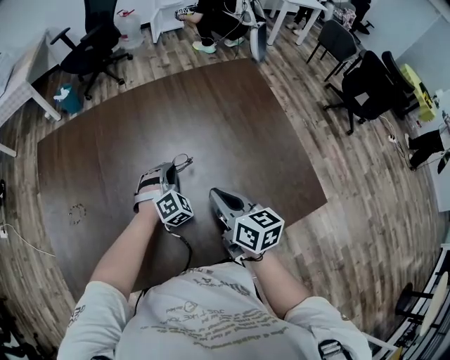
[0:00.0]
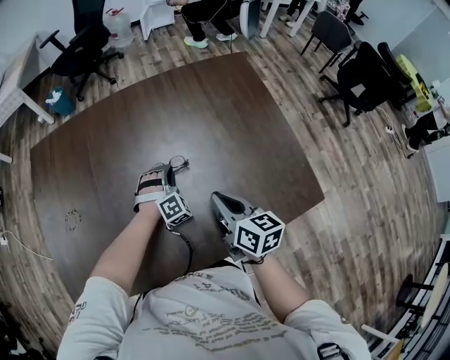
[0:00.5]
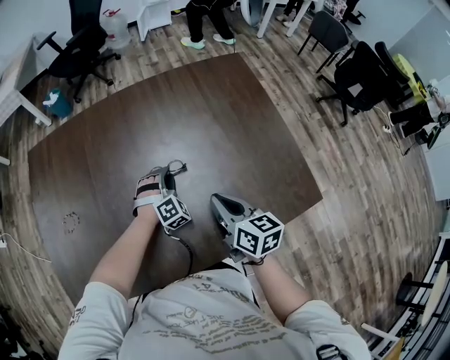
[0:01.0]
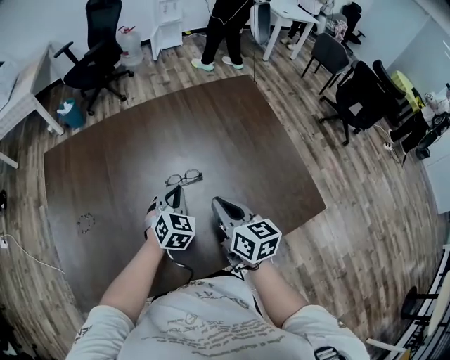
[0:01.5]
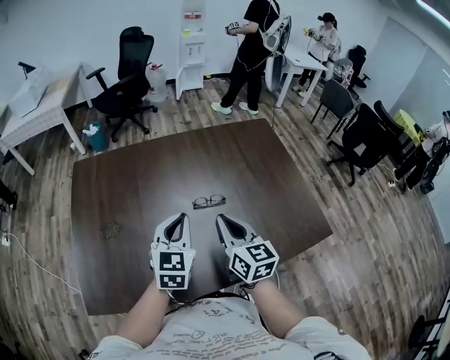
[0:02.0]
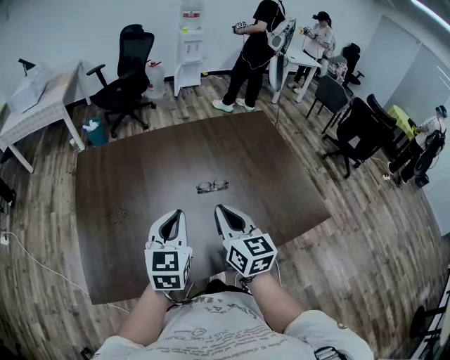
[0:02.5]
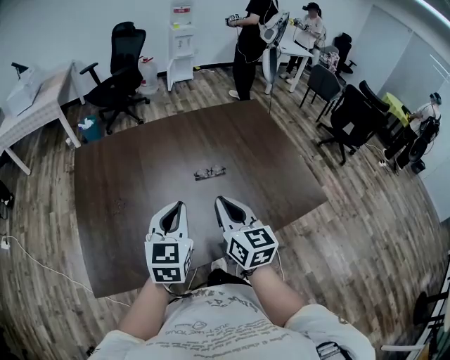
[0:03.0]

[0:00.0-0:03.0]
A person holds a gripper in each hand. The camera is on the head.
0.0 to 1.5 s: The left gripper moves upward, some 5 cm, turns by approximately 30 degrees, and opens, then closes again.
1.5 to 3.0 s: The left gripper travels backward, upward and to the left by approximately 30 cm, and changes its angle by some 30 degrees. Meanwhile the right gripper travels to the left, backward and upward by approximately 20 cm.

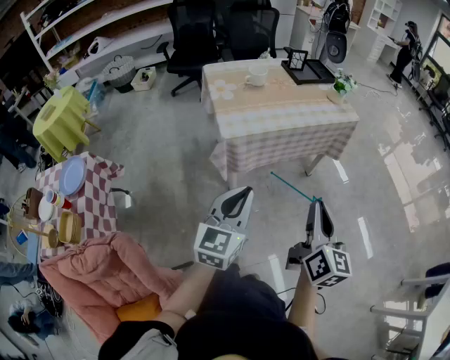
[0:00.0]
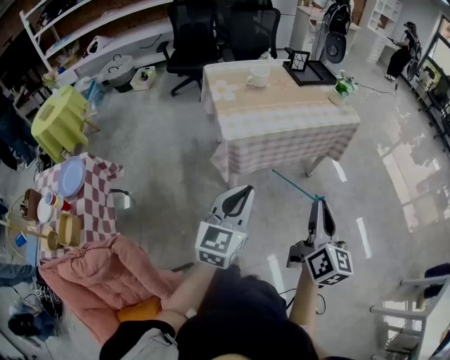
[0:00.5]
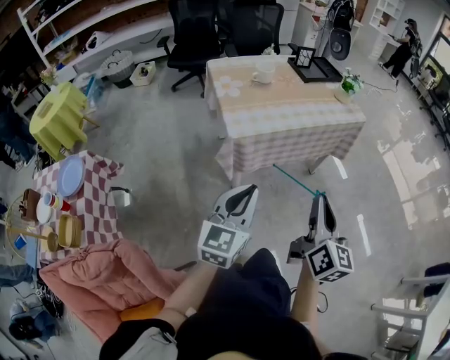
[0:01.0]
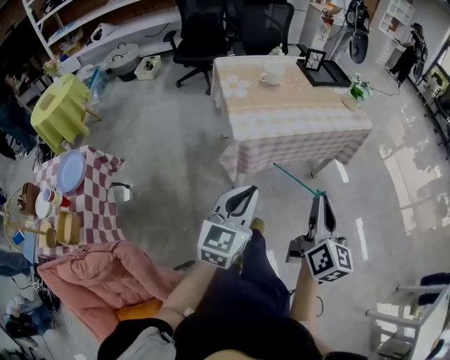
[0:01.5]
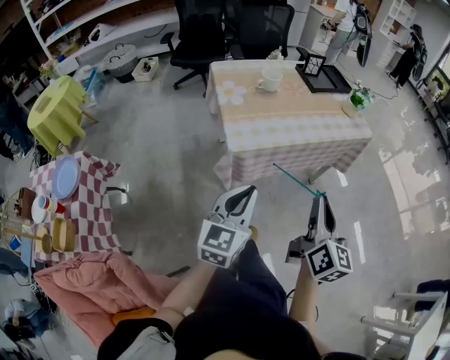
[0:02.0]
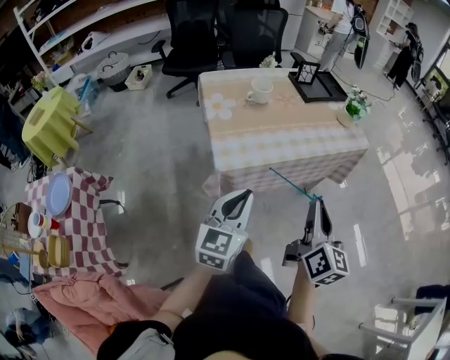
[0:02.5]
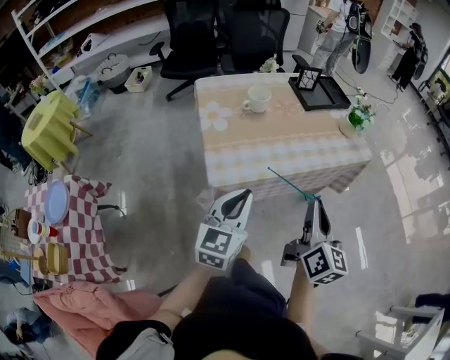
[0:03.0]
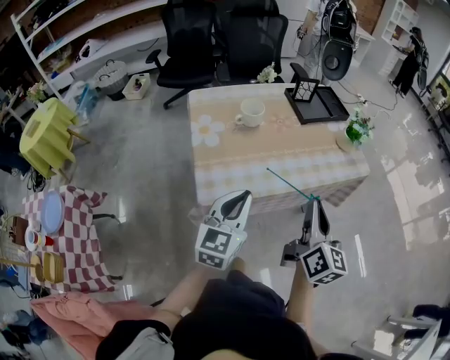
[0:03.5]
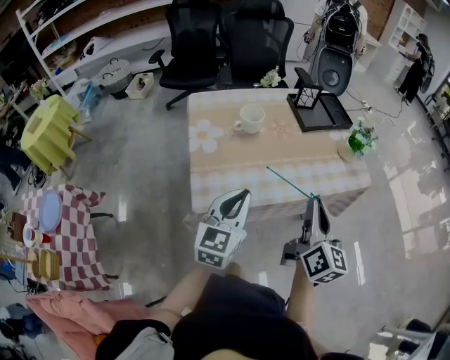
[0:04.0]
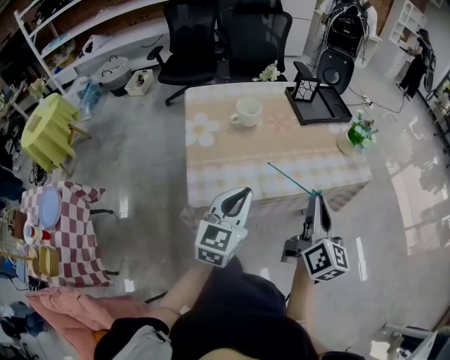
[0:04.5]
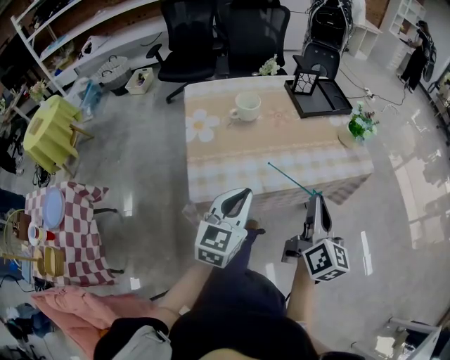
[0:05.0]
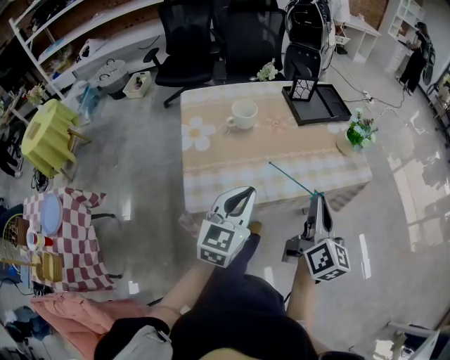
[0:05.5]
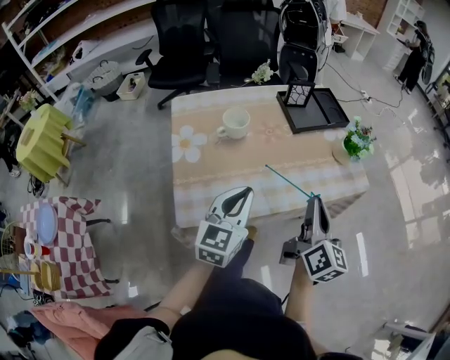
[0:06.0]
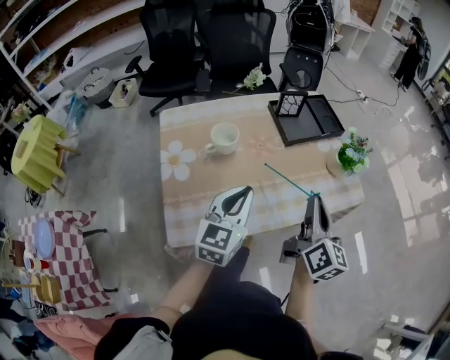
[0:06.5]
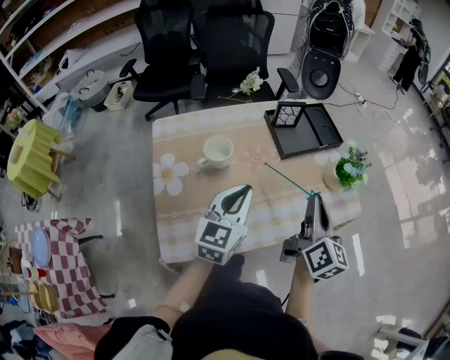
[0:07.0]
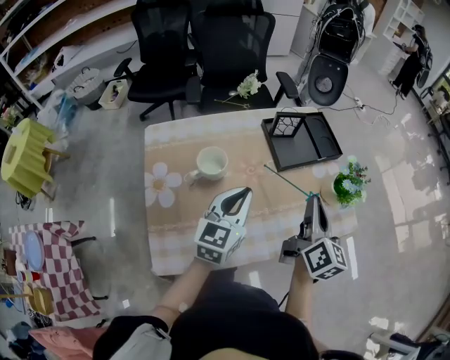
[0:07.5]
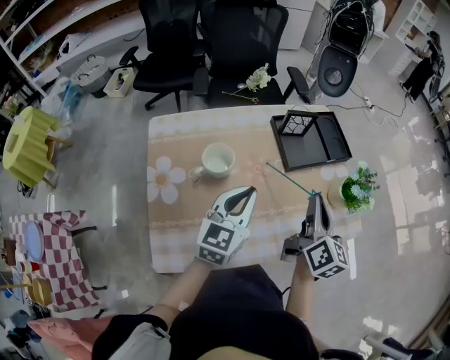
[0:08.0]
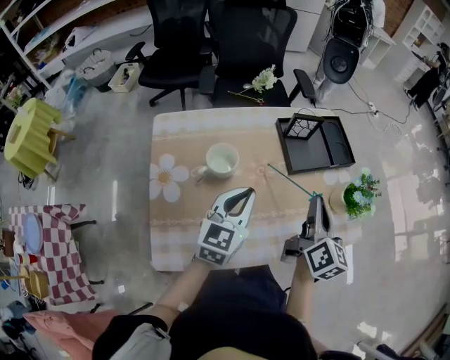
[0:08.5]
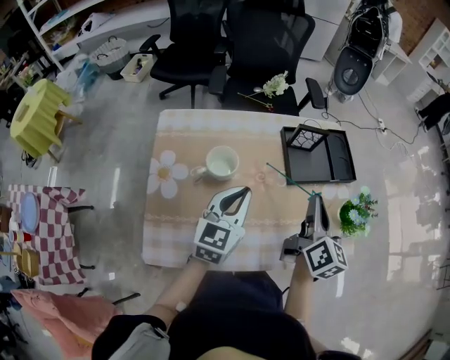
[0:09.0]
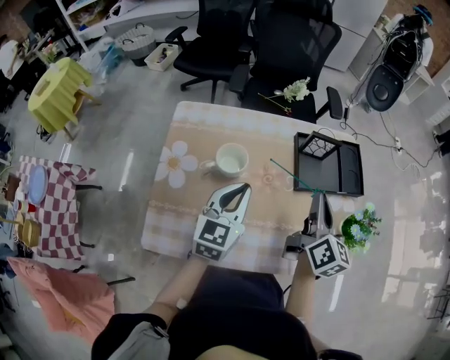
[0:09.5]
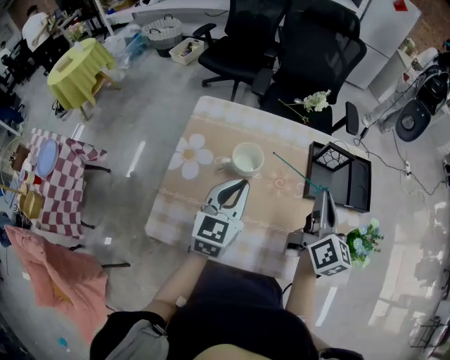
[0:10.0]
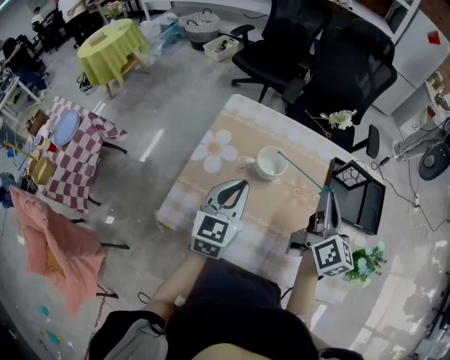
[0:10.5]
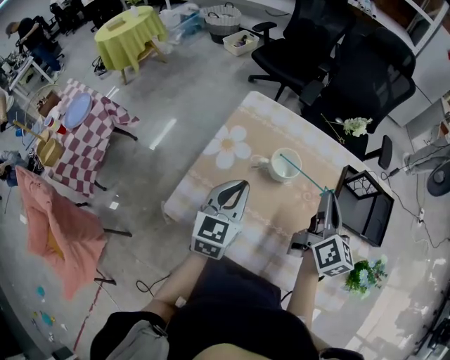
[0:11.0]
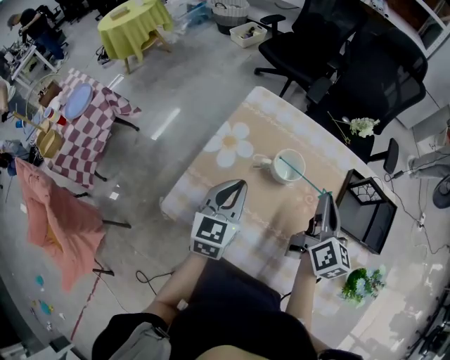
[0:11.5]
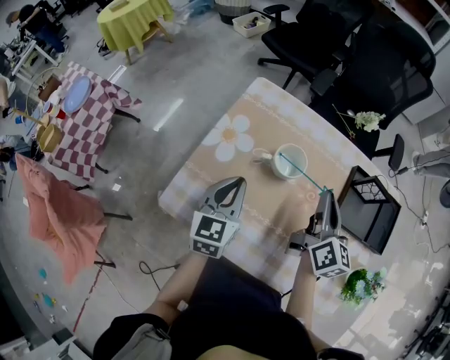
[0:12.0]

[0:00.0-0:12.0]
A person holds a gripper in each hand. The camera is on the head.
0.0 to 2.0 s: The right gripper travels forward and to the left by roughly 10 cm. The left gripper goes approximately 10 cm forward.
2.0 to 4.0 s: The two grippers go some 25 cm forward.
4.0 to 6.0 s: The grippers both shift forward by approximately 5 cm.
6.0 to 8.0 s: The two grippers go approximately 20 cm forward.
8.0 to 10.0 s: The right gripper changes place by about 10 cm, and rotates roughly 20 degrees. Meanwhile the left gripper ends up approximately 5 cm from where it was, and turns by about 30 degrees.
10.0 to 12.0 s: The left gripper shifts some 10 cm to the left and downward, and changes its angle by approximately 20 degrees; the right gripper moves to the left, forward and downward, approximately 10 cm.

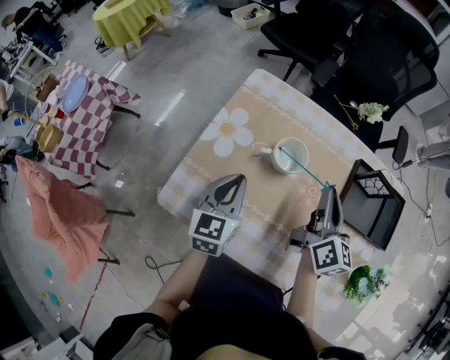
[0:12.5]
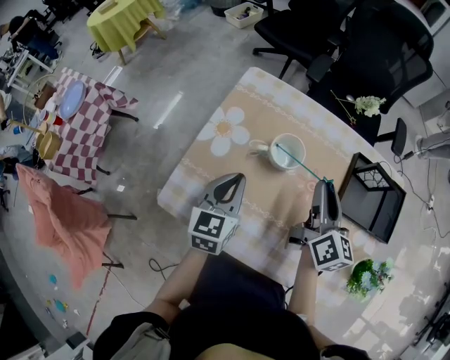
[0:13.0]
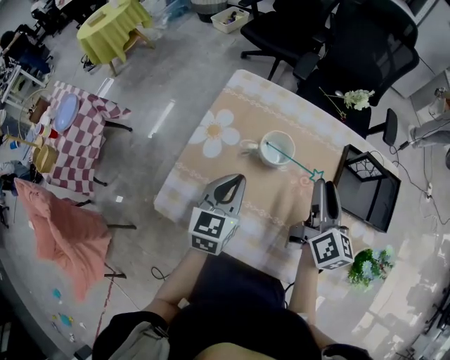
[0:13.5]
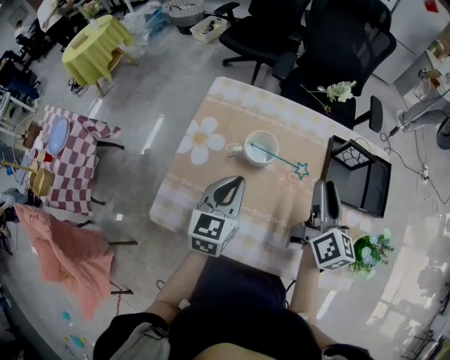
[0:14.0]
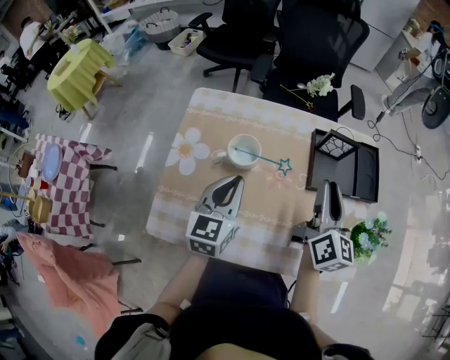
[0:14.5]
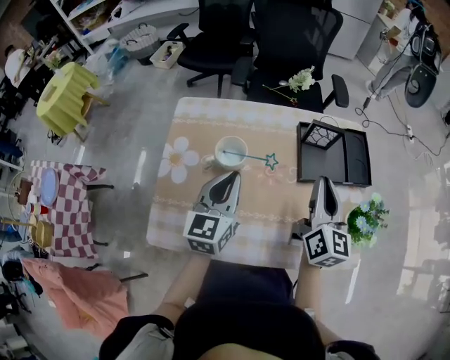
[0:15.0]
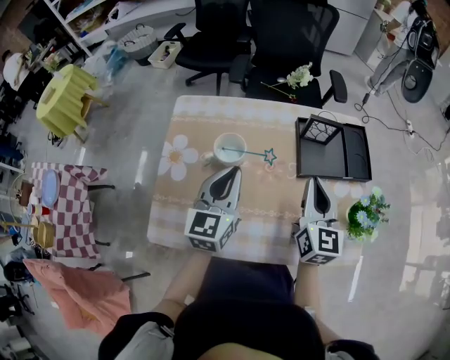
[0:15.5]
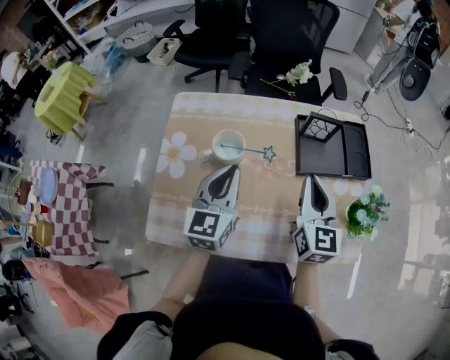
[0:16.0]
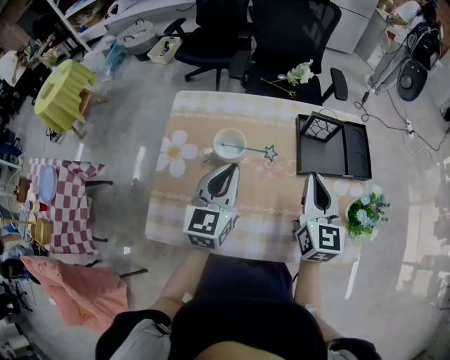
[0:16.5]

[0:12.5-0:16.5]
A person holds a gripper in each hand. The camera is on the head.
12.5 to 14.5 s: The right gripper moves to the right and backward, some 10 cm, and opens its fingers; the left gripper shifts roughly 10 cm to the right.
14.5 to 16.5 s: The right gripper turns by some 30 degrees, and closes up.

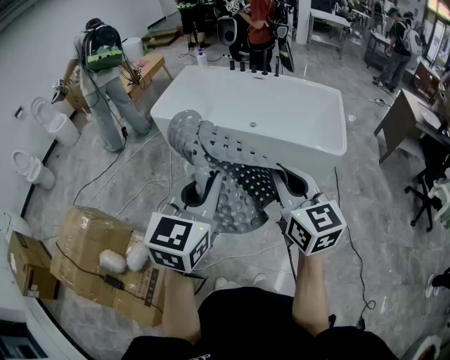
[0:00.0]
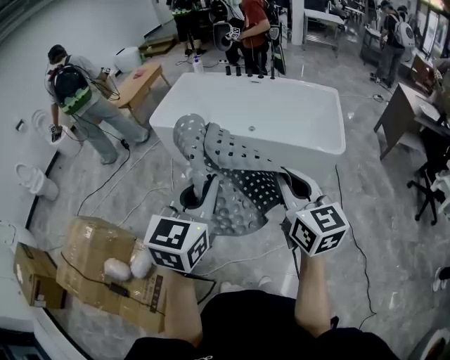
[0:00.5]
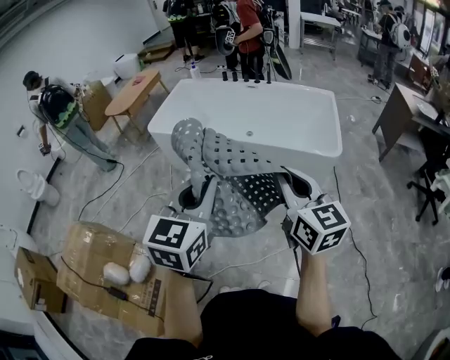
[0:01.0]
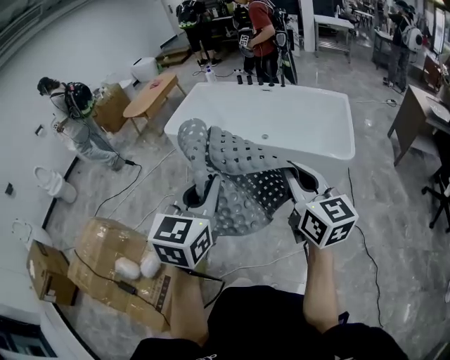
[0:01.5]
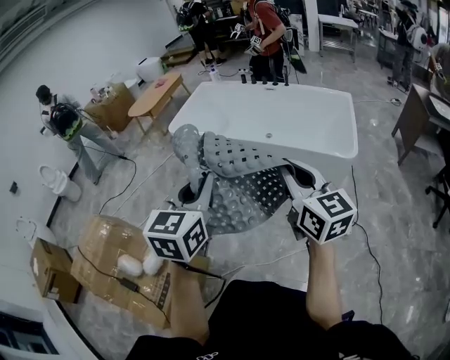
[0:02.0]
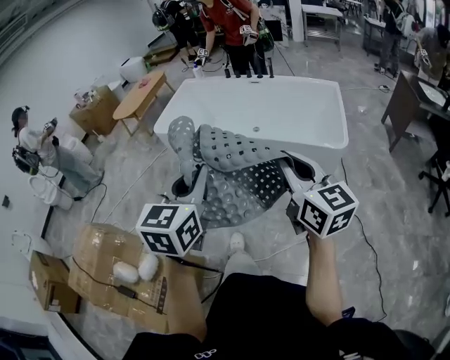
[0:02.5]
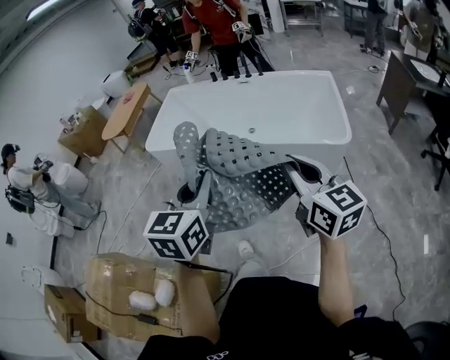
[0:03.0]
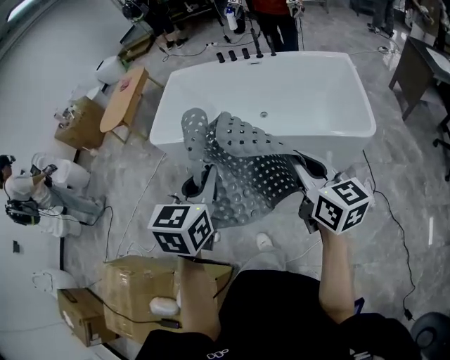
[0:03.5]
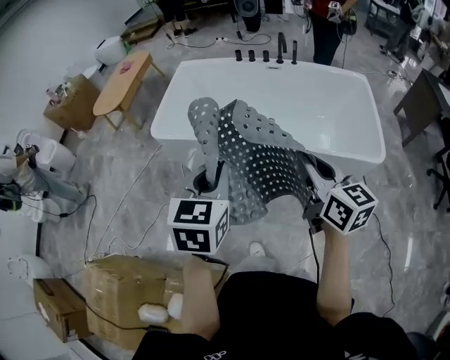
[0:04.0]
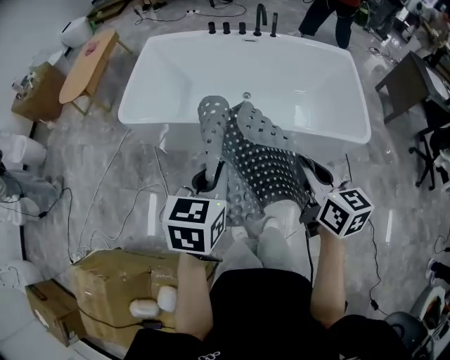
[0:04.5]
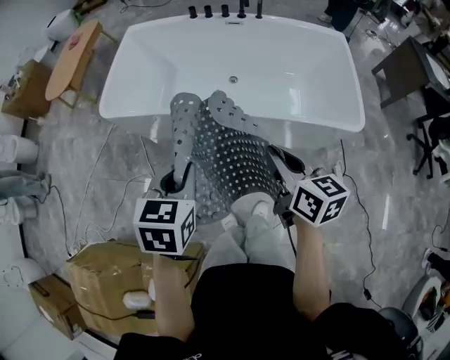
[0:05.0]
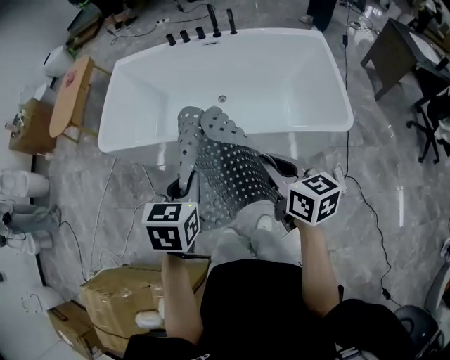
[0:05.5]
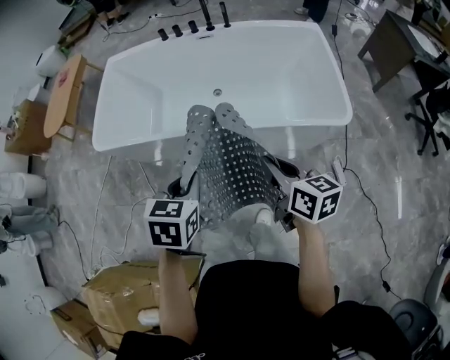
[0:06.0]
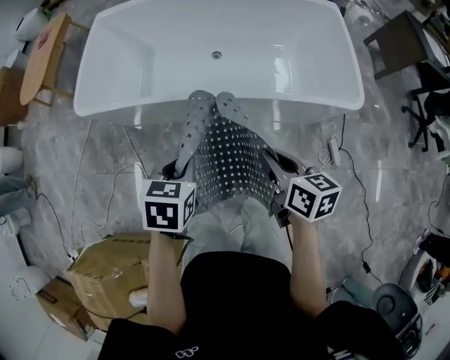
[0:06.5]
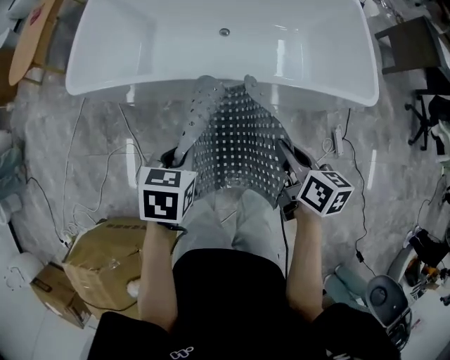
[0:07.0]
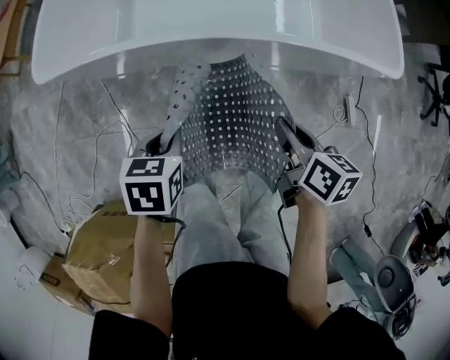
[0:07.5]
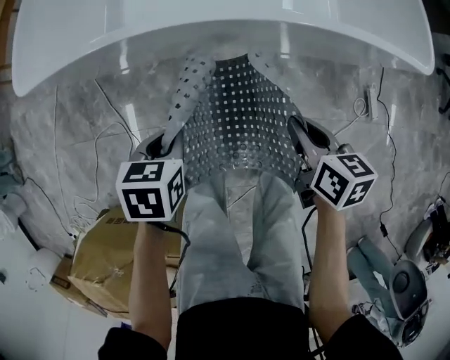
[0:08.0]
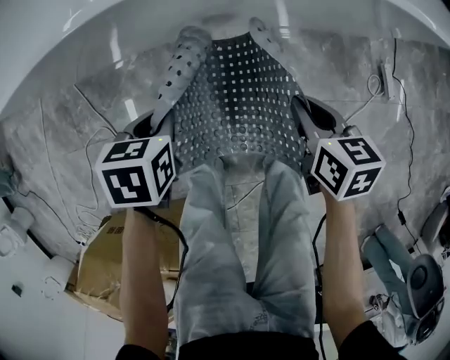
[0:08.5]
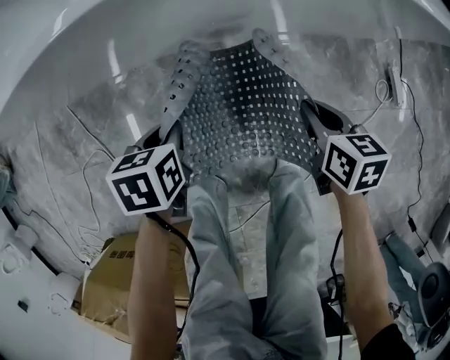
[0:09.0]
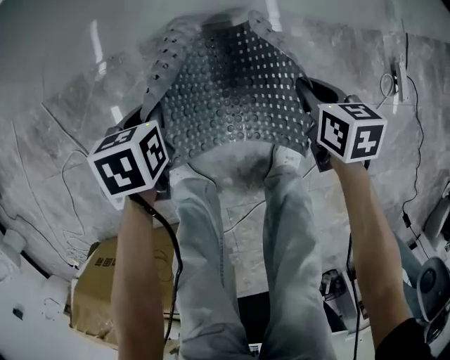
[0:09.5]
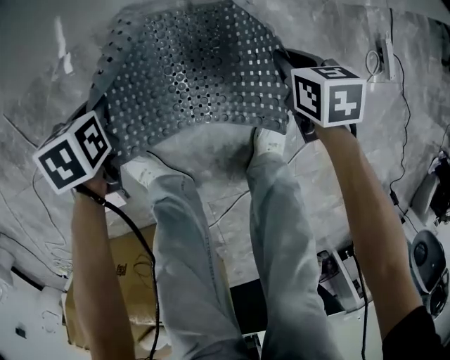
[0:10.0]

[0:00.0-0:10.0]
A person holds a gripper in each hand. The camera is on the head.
0.0 to 2.0 s: The right gripper goes about 5 cm to the right.
2.0 to 4.0 s: The two grippers go approximately 30 cm forward and to the left.
4.0 to 6.0 s: The two grippers go about 20 cm downward and to the right. The right gripper rotates some 20 degrees. Meanwhile the left gripper changes its angle by approximately 20 degrees.
6.0 to 8.0 s: The left gripper heads downward and to the left, covering some 35 cm, and swivels about 20 degrees, while the right gripper shifts approximately 25 cm downward, and turns by approximately 20 degrees.
8.0 to 10.0 s: The grippers both shift downward by roughly 35 cm. The right gripper turns by about 20 degrees.
